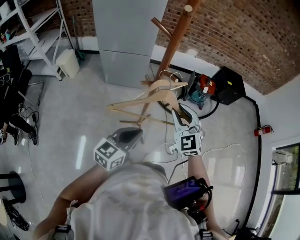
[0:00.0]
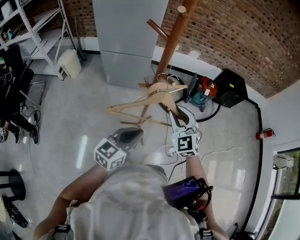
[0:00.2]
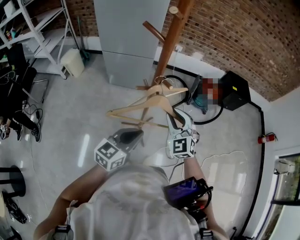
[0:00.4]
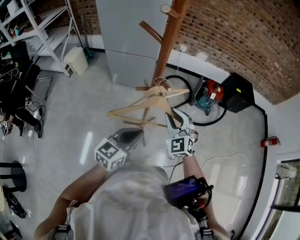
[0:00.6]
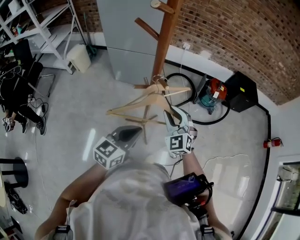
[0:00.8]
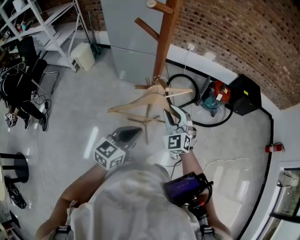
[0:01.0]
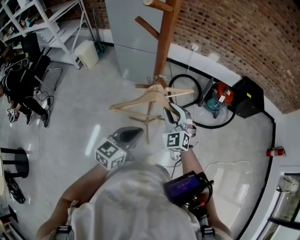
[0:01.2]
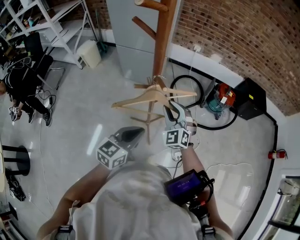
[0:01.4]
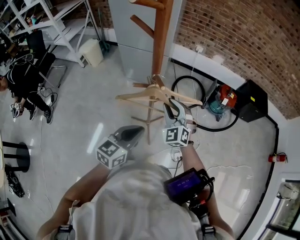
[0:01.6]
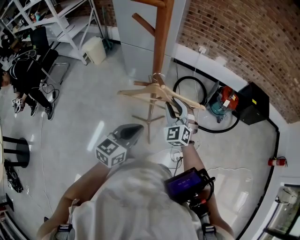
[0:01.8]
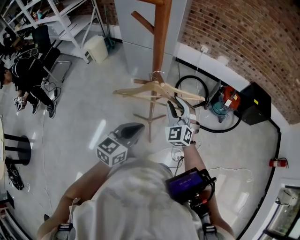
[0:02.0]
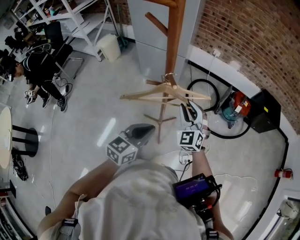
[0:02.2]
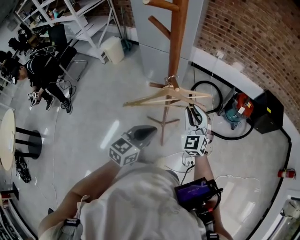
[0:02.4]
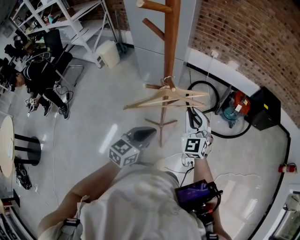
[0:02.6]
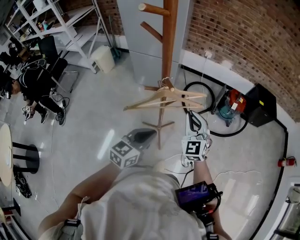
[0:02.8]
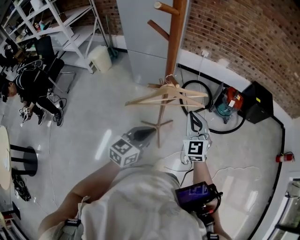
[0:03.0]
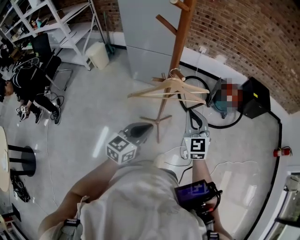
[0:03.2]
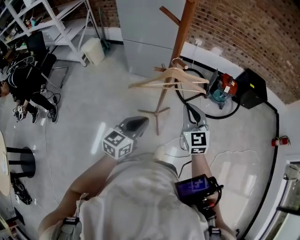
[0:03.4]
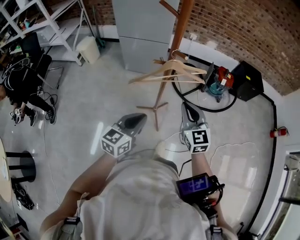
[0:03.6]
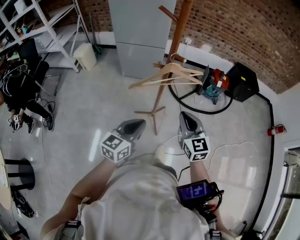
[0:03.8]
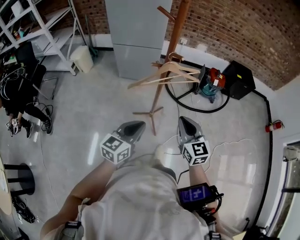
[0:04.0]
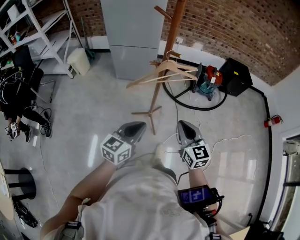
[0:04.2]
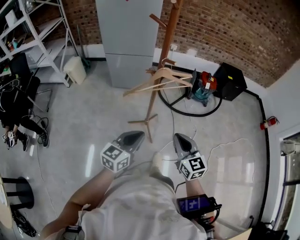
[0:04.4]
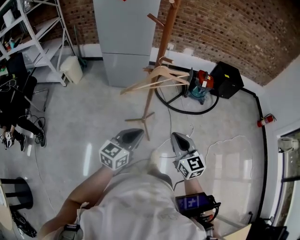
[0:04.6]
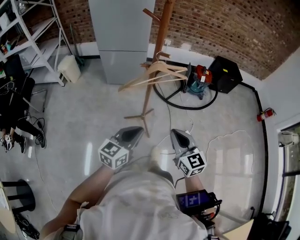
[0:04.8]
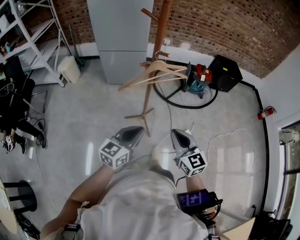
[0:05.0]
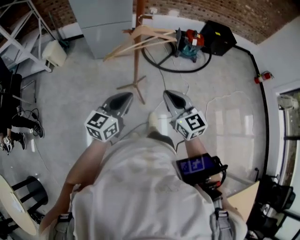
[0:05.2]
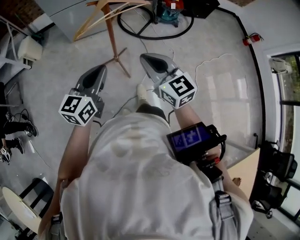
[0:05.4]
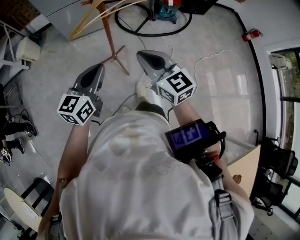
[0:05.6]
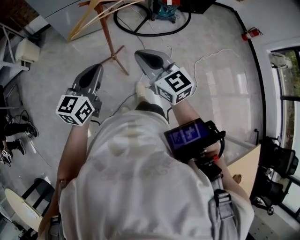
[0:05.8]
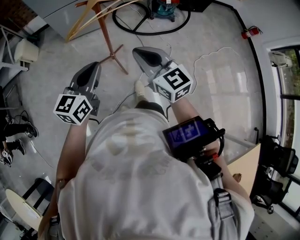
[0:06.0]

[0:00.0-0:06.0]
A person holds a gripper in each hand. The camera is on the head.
0:00.0 to 0:01.6: The left gripper goes roughly 10 cm to the right and forward, while the right gripper is displaced forward and downward by some 15 cm.
0:01.6 to 0:03.0: The right gripper is displaced backward and to the right by roughly 10 cm, rotates some 20 degrees, and closes its fingers.
0:03.0 to 0:04.4: The left gripper is displaced backward and to the left by approximately 15 cm. Meanwhile the right gripper goes approximately 25 cm backward, and rotates about 30 degrees.
0:04.4 to 0:06.0: The grippers move only a little.

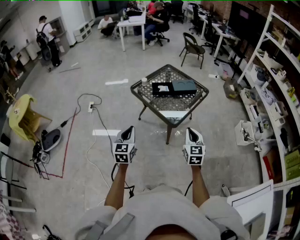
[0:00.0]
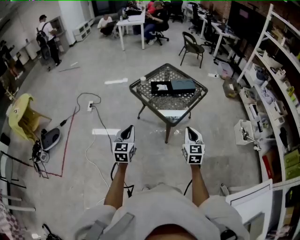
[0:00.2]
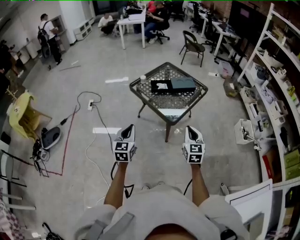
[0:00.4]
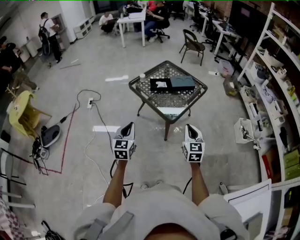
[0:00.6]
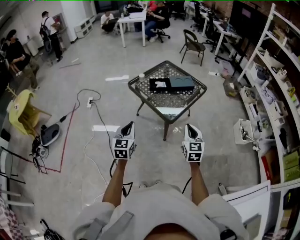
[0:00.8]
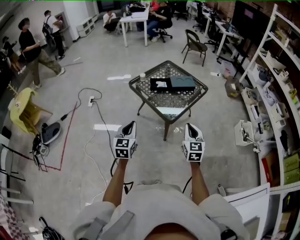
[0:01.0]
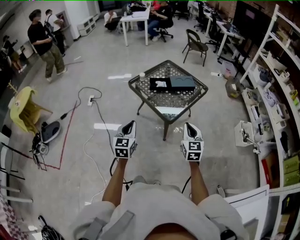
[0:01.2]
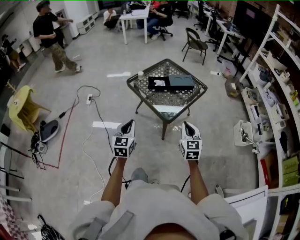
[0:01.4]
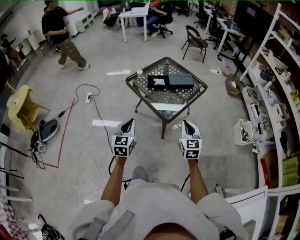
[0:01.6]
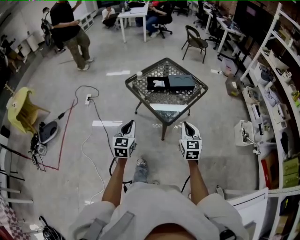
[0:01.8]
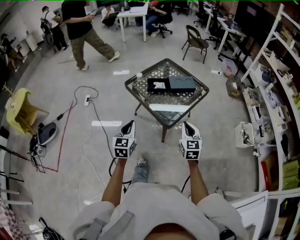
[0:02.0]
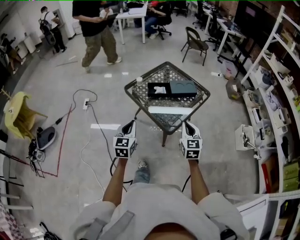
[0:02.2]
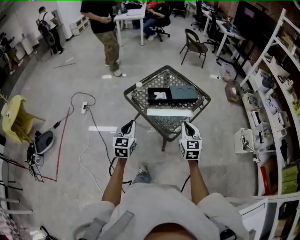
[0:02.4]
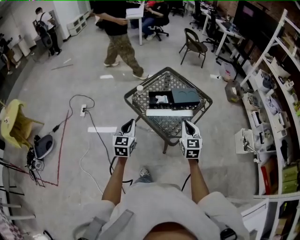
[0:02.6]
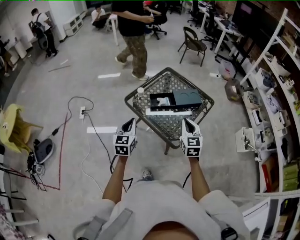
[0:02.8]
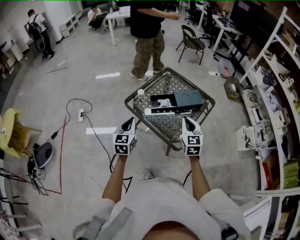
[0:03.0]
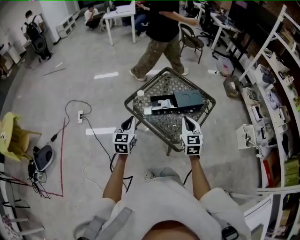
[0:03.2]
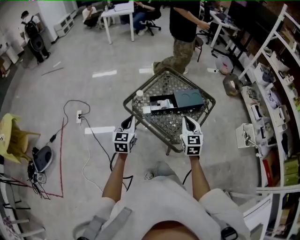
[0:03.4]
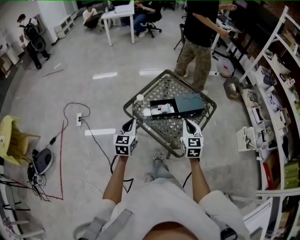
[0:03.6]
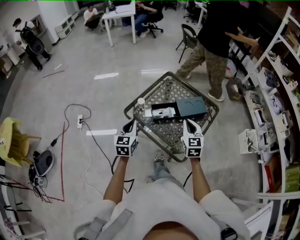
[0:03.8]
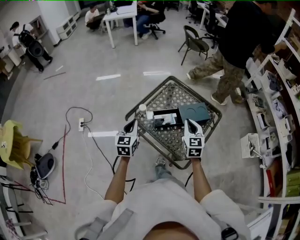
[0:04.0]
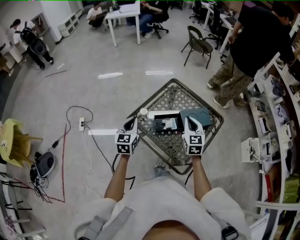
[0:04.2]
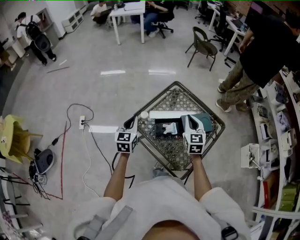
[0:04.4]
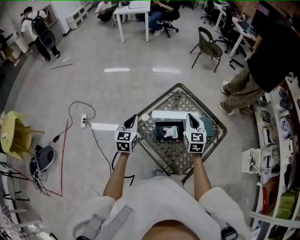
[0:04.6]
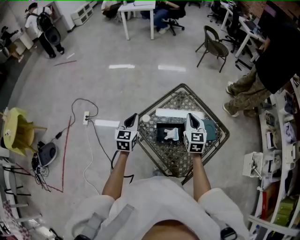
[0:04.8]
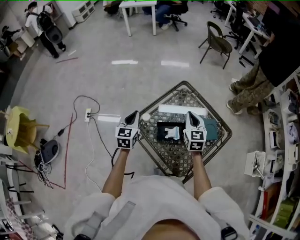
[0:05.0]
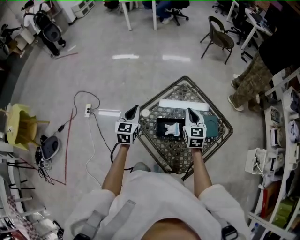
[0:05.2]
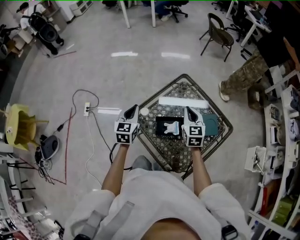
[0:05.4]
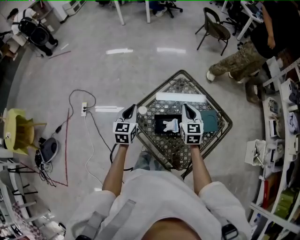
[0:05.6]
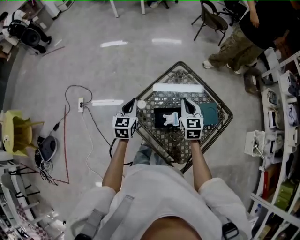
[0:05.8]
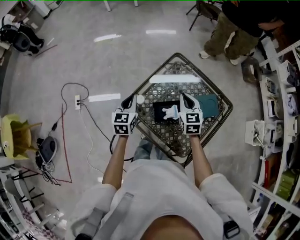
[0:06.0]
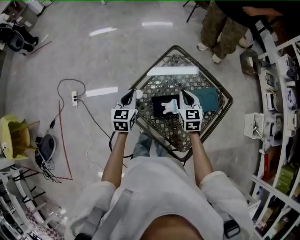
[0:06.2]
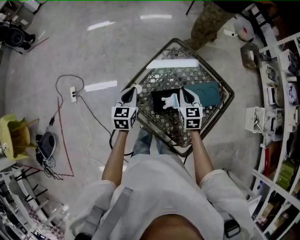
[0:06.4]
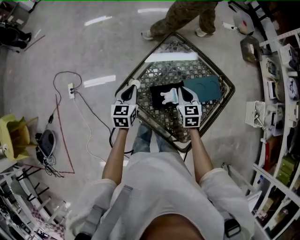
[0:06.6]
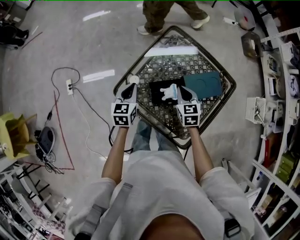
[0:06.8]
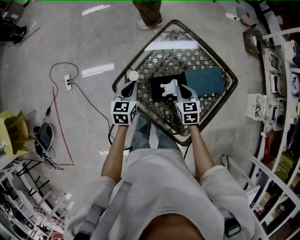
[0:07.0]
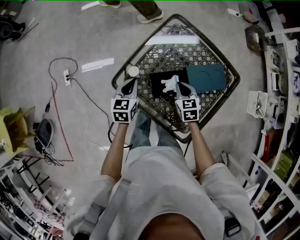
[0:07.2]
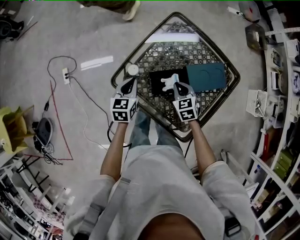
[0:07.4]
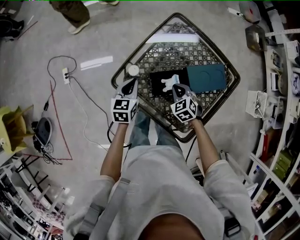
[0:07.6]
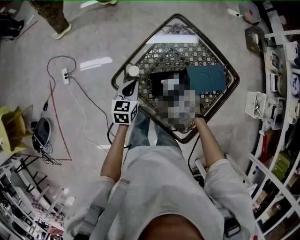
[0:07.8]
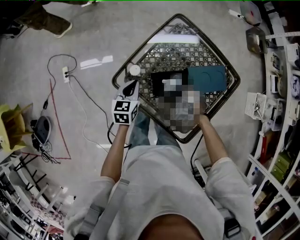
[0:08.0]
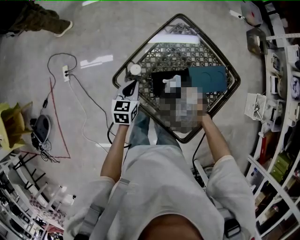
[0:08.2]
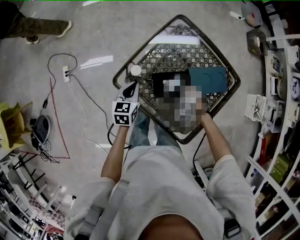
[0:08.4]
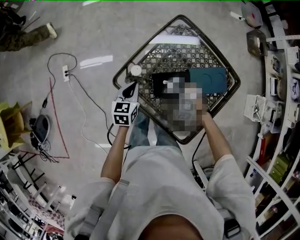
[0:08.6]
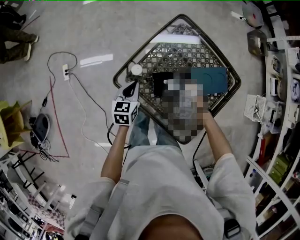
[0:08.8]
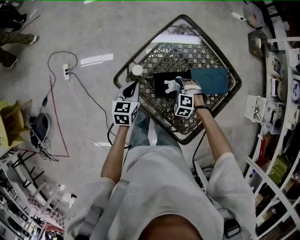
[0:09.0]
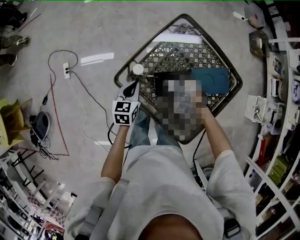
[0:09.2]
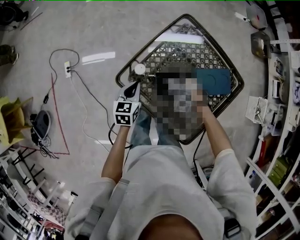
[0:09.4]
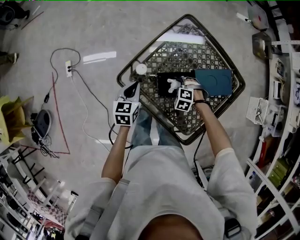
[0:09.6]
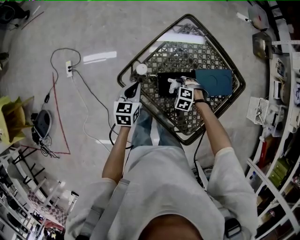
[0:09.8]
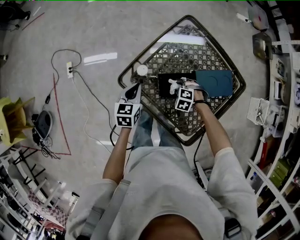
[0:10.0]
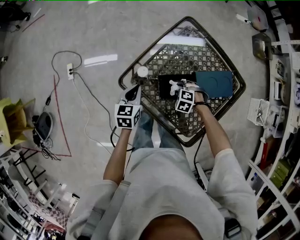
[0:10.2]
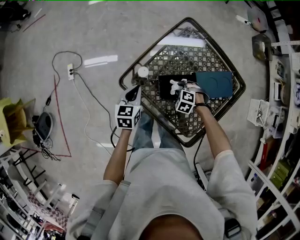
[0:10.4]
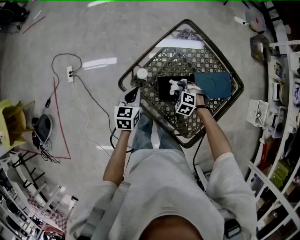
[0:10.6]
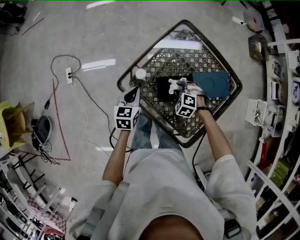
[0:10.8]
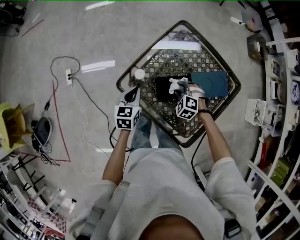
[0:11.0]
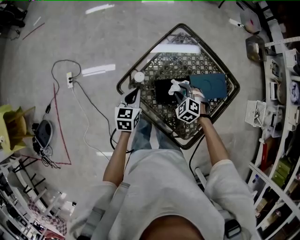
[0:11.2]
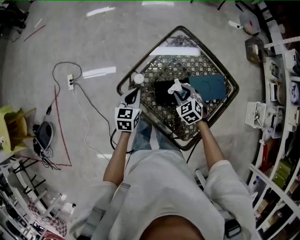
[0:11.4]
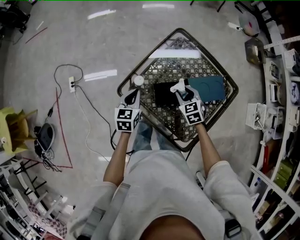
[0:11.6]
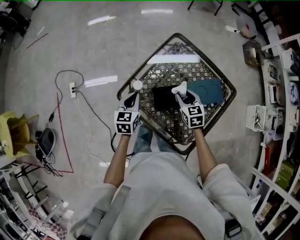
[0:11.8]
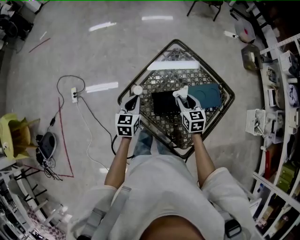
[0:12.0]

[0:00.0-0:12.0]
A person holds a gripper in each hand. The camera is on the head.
0:00.0 to 0:01.6: The left gripper heads to the right, covering roughly 10 cm. Meanwhile the right gripper moves roughly 5 cm.
0:01.6 to 0:03.0: Both grippers move forward, approximately 30 cm.
0:03.0 to 0:04.4: The two grippers go about 25 cm forward.
0:04.4 to 0:06.0: Both grippers move forward and downward, approximately 15 cm.
0:06.0 to 0:07.6: The right gripper is displaced downward and backward by some 20 cm, and swivels some 40 degrees. Meanwhile the left gripper heads downward, covering roughly 10 cm.
0:07.6 to 0:09.0: The right gripper is displaced downward by some 5 cm, twists approximately 40 degrees counterclockwise, seen from behind, and opens.
0:09.0 to 0:10.4: The right gripper closes.
0:10.4 to 0:12.0: The left gripper heads upward, covering some 5 cm; the right gripper moves upward, some 20 cm, and twists some 60 degrees clockwise, seen from behind.

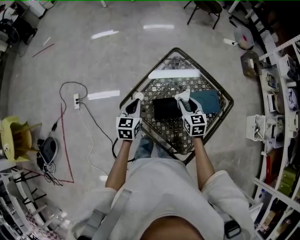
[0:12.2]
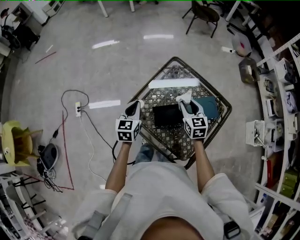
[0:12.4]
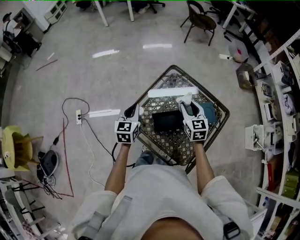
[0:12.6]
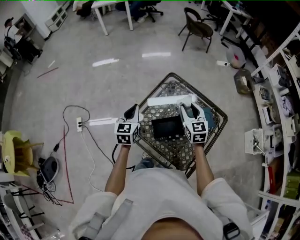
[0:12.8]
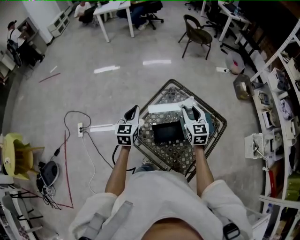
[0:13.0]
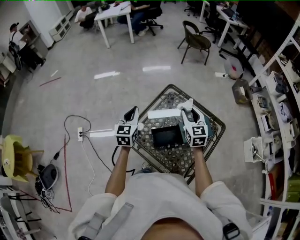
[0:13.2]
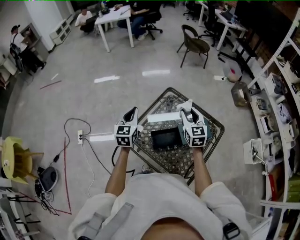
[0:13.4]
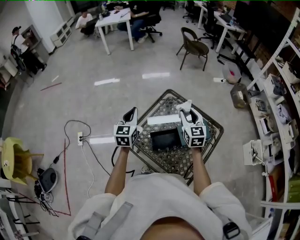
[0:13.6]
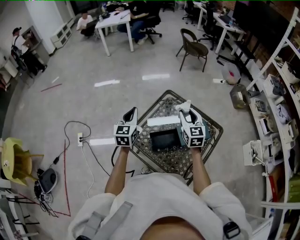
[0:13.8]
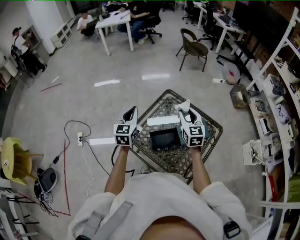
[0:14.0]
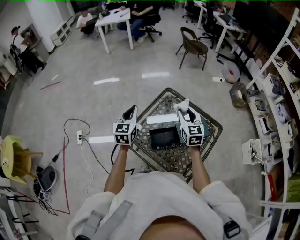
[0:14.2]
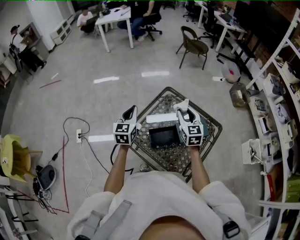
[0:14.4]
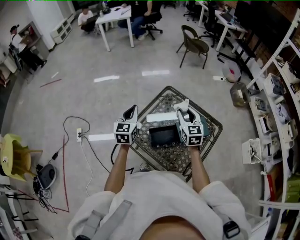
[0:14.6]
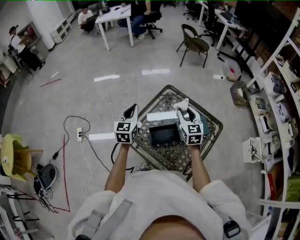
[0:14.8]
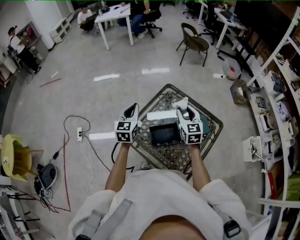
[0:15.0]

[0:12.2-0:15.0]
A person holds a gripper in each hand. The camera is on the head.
0:12.2 to 0:13.6: The grippers both shift upward by some 15 cm. The right gripper swivels some 20 degrees.
0:13.6 to 0:15.0: The grippers make only small movements.

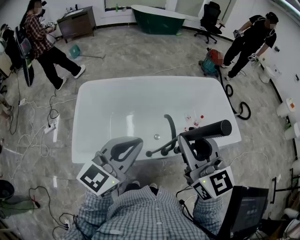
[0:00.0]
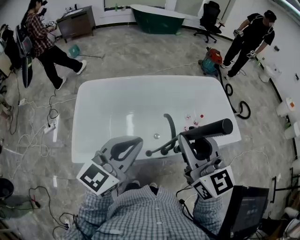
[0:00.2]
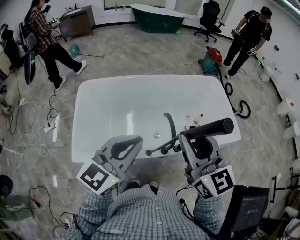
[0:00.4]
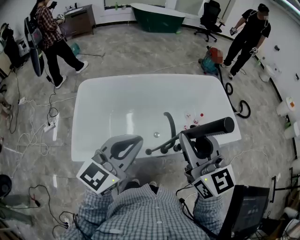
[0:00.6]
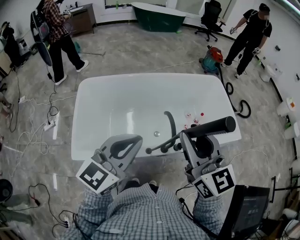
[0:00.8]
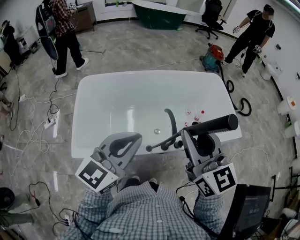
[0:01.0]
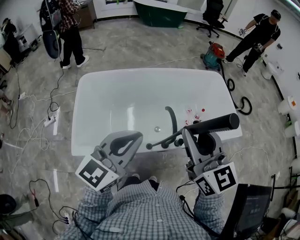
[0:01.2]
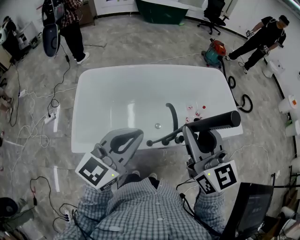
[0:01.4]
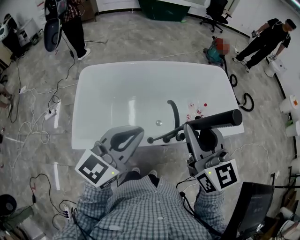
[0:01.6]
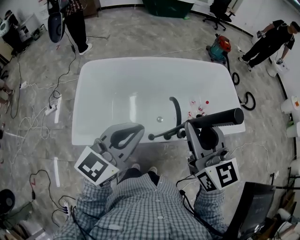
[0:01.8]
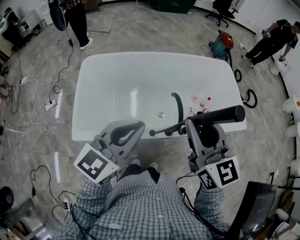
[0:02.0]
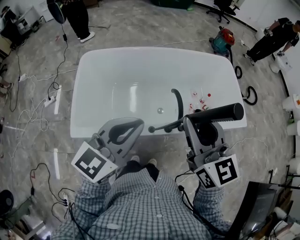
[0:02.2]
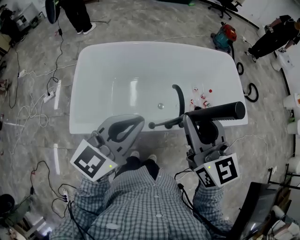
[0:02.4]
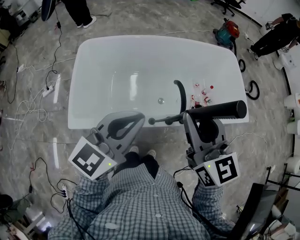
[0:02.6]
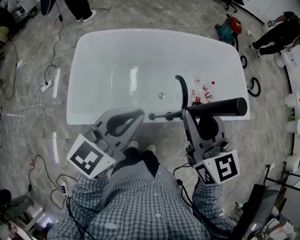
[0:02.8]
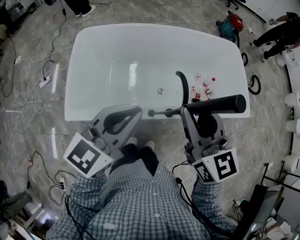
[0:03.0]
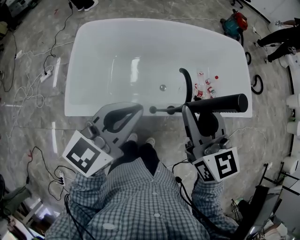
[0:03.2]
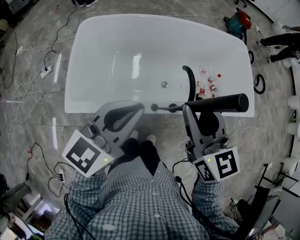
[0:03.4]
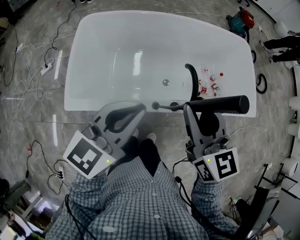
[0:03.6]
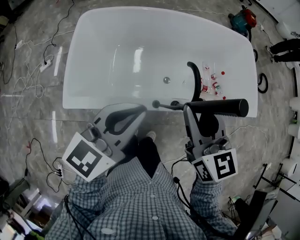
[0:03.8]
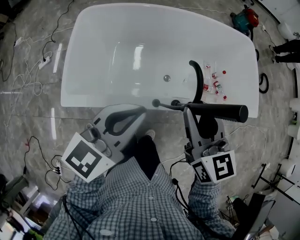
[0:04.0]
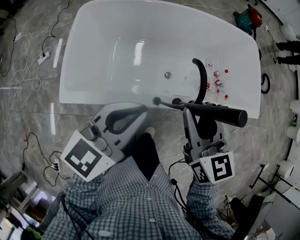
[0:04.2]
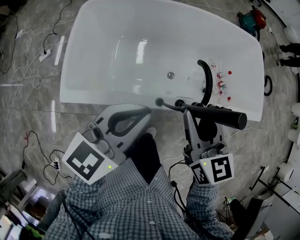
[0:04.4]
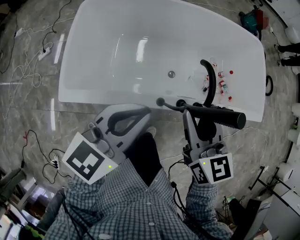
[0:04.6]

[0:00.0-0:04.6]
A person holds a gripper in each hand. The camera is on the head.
0:00.0 to 0:01.6: The two grippers keep their place.
0:01.6 to 0:03.0: The two grippers go about 5 cm downward.
0:03.0 to 0:04.6: Both grippers travel together downward, about 15 cm.
